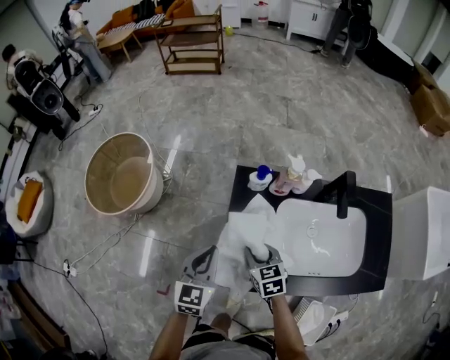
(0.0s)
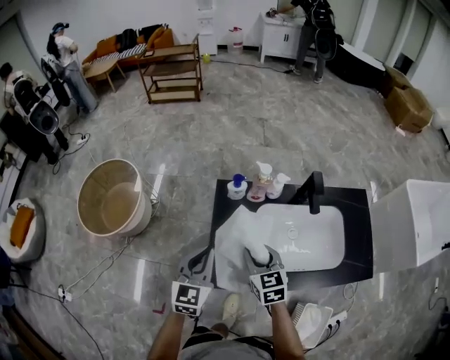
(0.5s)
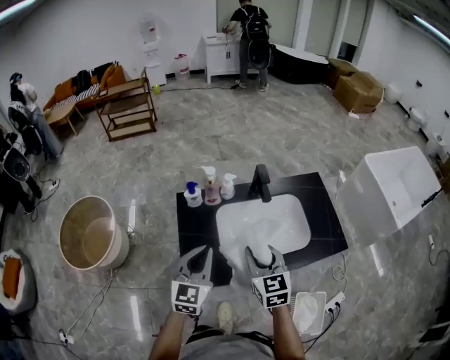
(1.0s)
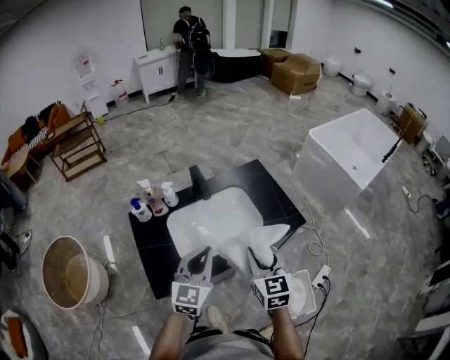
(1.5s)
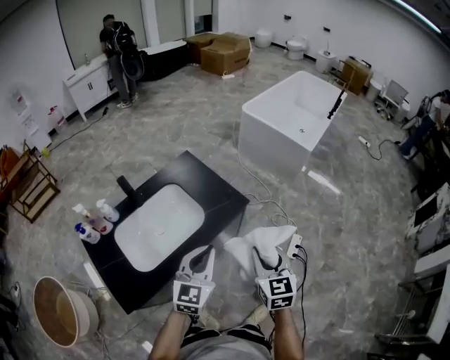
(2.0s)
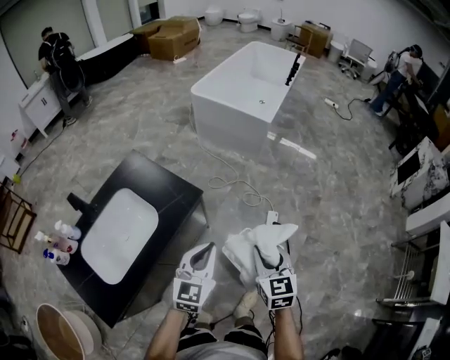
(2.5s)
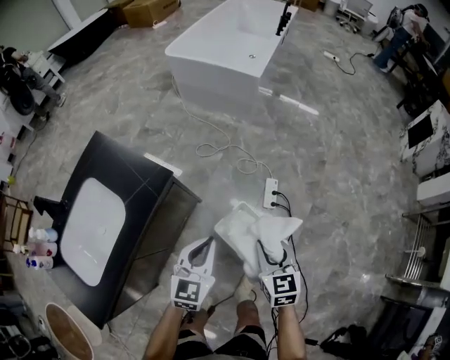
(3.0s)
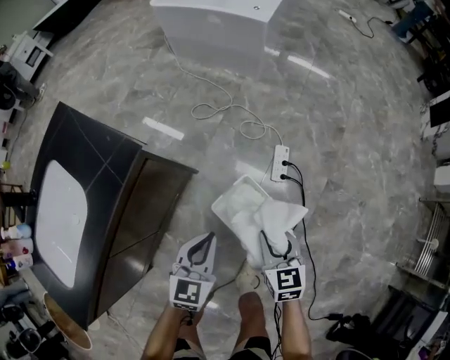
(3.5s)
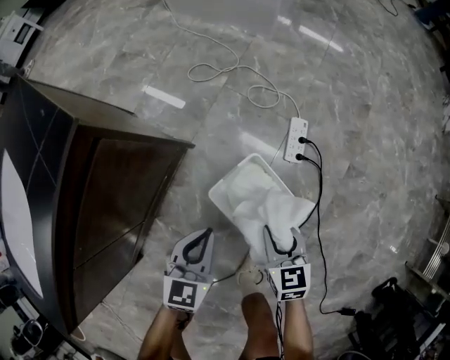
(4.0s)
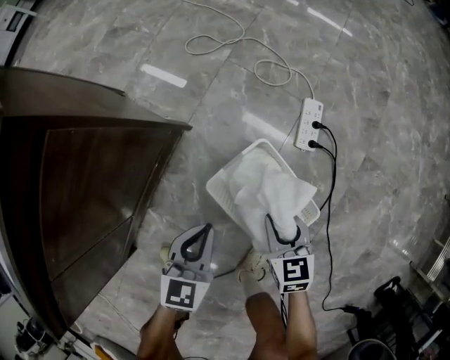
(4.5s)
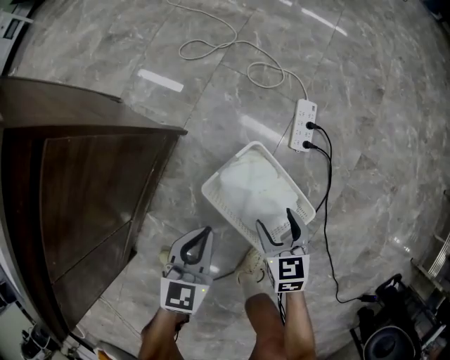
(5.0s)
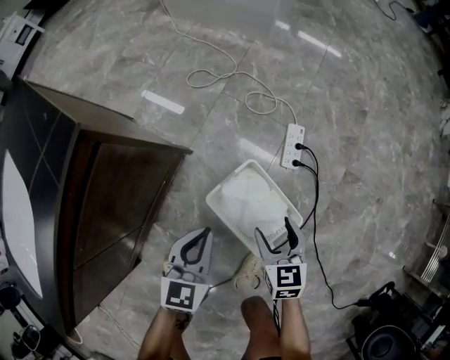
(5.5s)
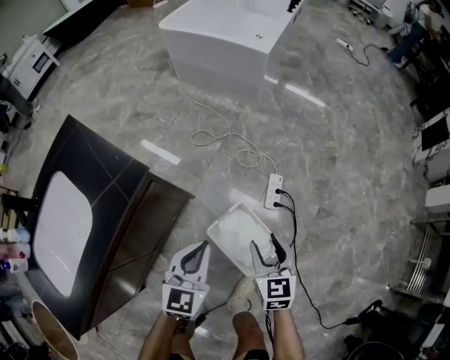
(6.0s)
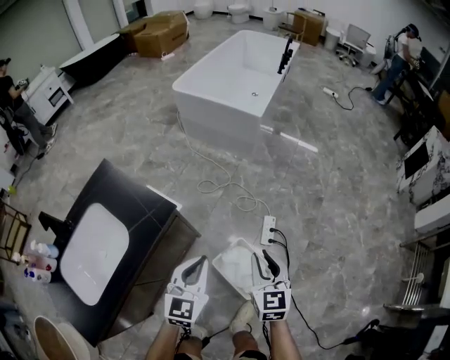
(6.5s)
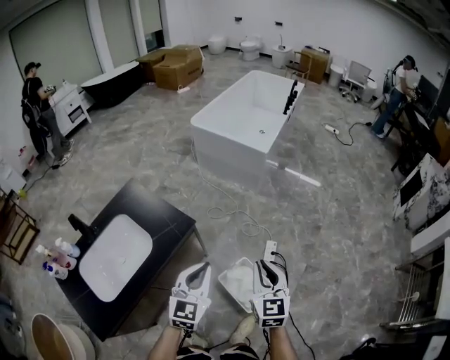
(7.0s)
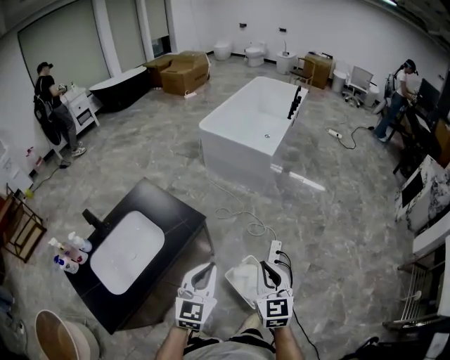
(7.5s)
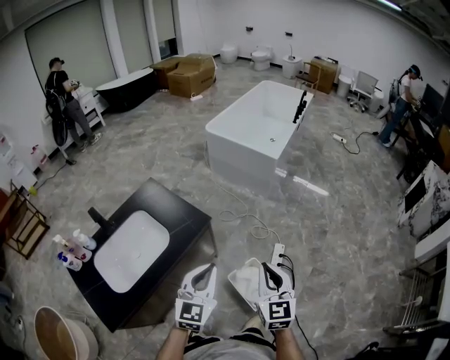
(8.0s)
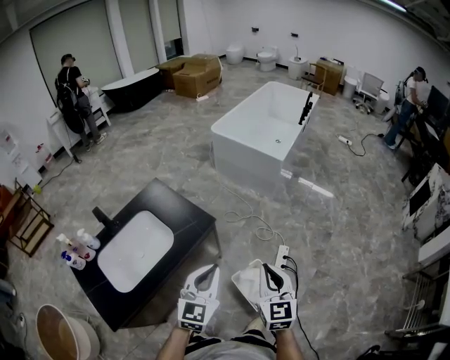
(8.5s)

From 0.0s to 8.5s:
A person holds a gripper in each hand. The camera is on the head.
From 0.0s to 2.0s: The two grippers travel together, roughly 60 cm. The right gripper turns by some 70 degrees. The left gripper changes its angle by some 60 degrees.
From 2.0s to 4.0s: Both grippers travel together downward and to the right, approximately 60 cm. The left gripper rotates approximately 30 degrees. Meanwhile the right gripper rotates some 30 degrees.
From 4.0s to 6.5s: The two grippers go some 40 cm upward. The left gripper swivels about 20 degrees. The right gripper rotates some 20 degrees, and opens, then closes again.
From 6.5s to 8.5s: The right gripper heads upward, backward and to the left, covering some 25 cm, while the left gripper shifts approximately 20 cm upward and backward.

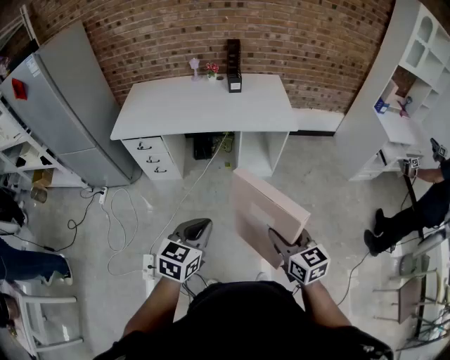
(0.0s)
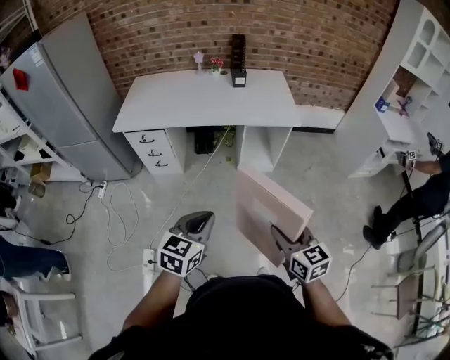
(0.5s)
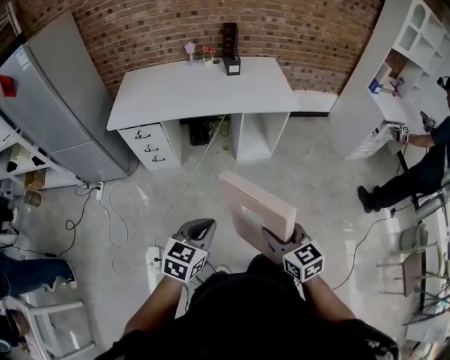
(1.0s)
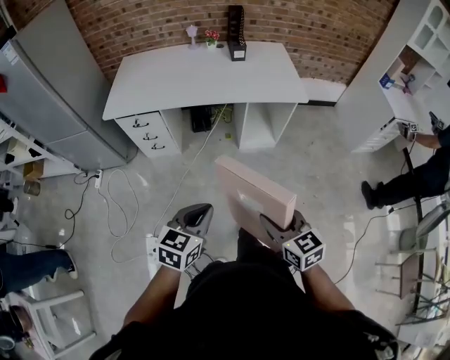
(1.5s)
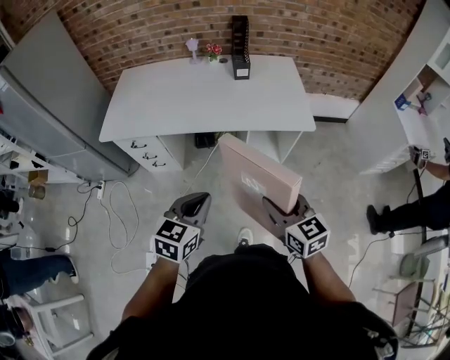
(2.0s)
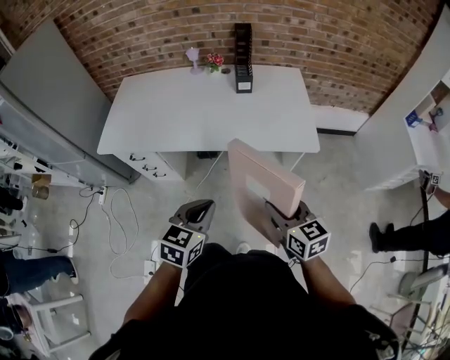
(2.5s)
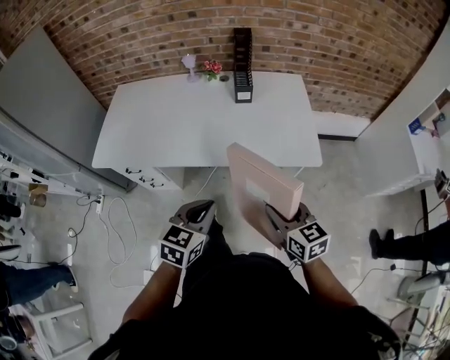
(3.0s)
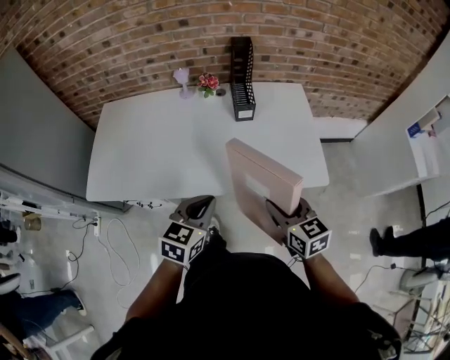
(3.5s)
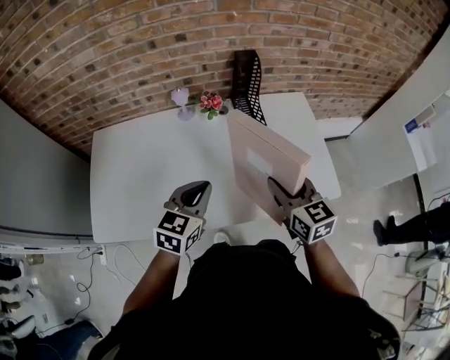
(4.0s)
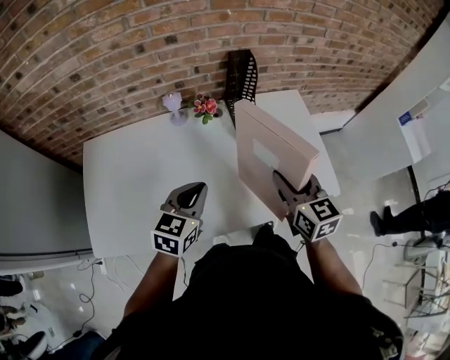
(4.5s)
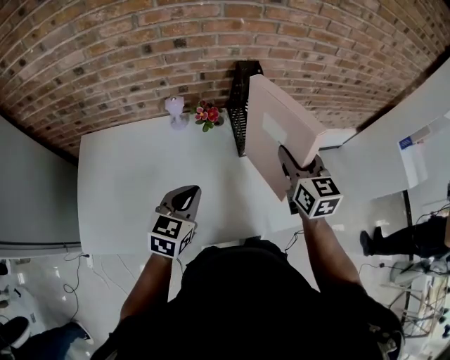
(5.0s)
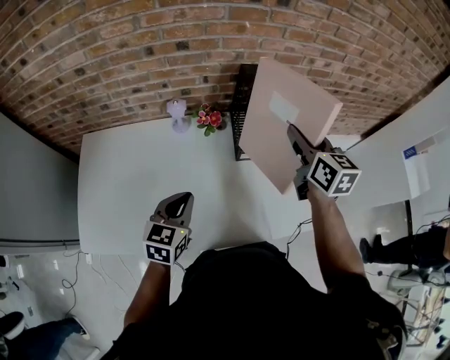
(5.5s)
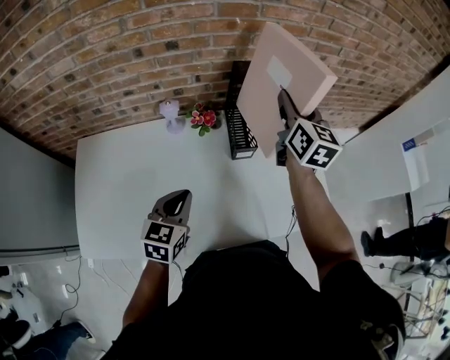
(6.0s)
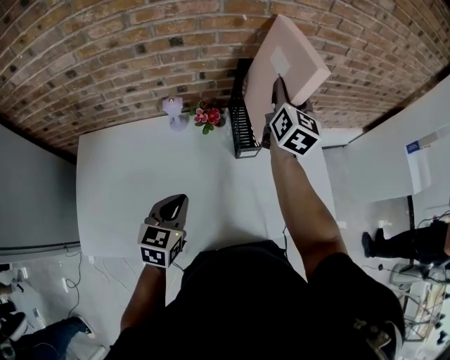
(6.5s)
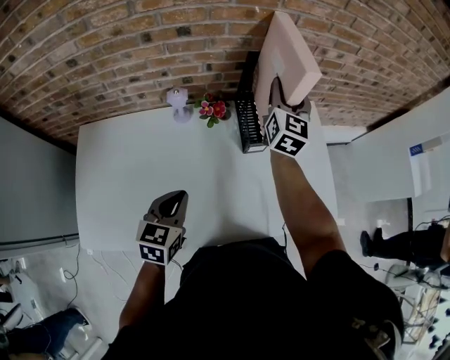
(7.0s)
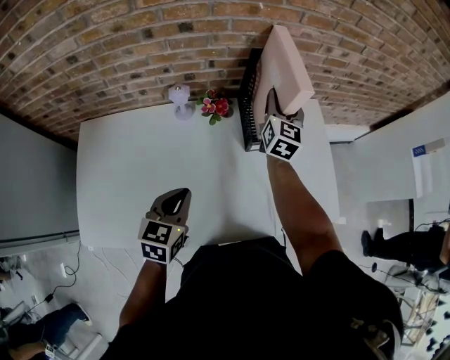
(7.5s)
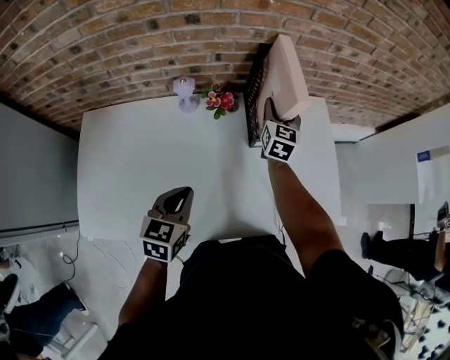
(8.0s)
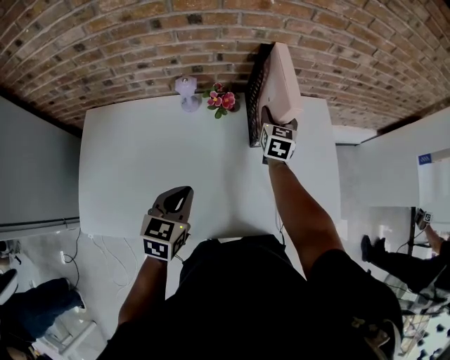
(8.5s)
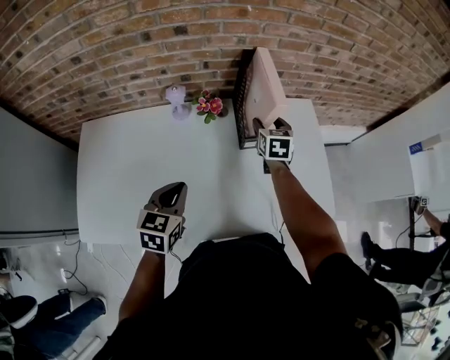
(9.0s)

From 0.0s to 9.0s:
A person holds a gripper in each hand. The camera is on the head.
From 0.0s to 2.0s: The two grippers go some 20 cm forward.
From 2.0s to 4.5s: The two grippers travel together, forward, about 50 cm. The right gripper rotates approximately 20 degrees.
From 4.5s to 7.0s: The right gripper shifts approximately 30 cm forward, and swivels approximately 30 degrees. The left gripper goes roughly 5 cm to the left.
From 7.0s to 9.0s: The right gripper moves downward, about 20 cm, points its fingers about 30 degrees further downward, and opens its fingers.

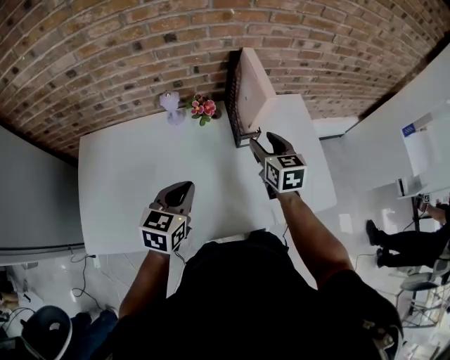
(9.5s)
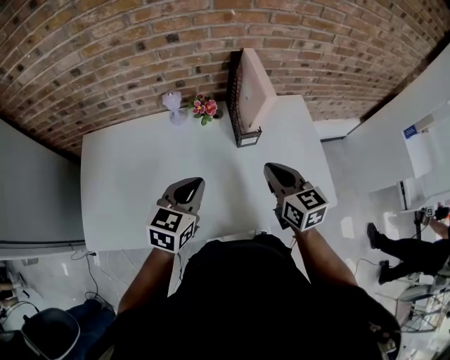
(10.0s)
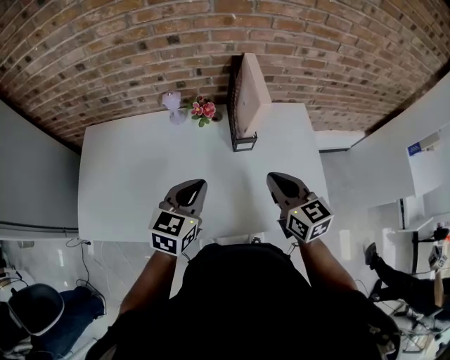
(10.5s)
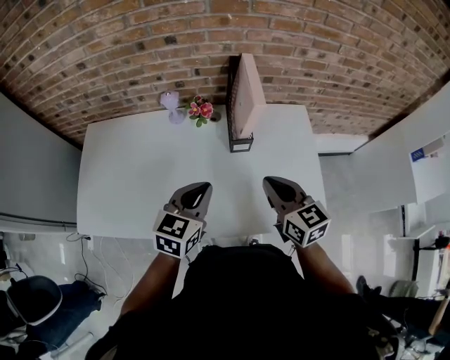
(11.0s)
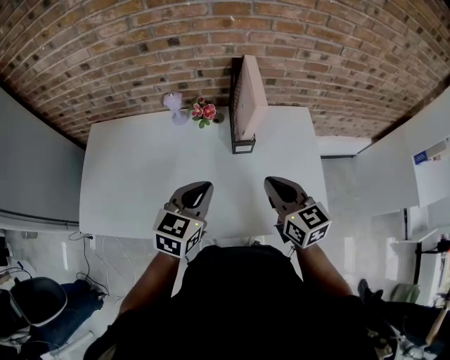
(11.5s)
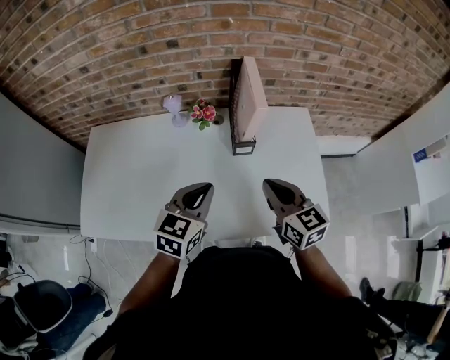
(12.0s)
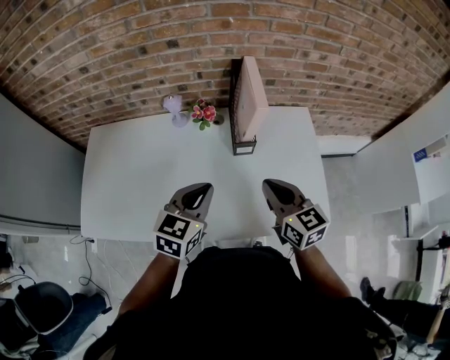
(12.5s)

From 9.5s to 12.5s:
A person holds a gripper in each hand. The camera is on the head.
From 9.5s to 11.0s: The left gripper is displaced to the right by roughly 10 cm. Meanwhile the right gripper heads backward and to the right, covering approximately 15 cm, changes its angle by roughly 20 degrees, and closes its fingers.
From 11.0s to 12.5s: Both grippers stay put.

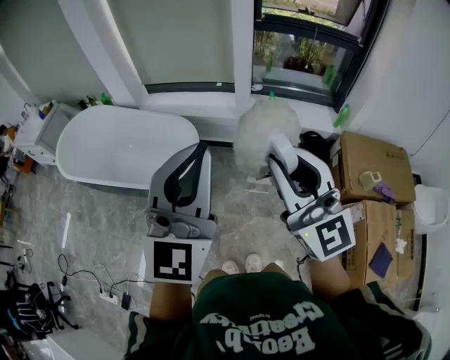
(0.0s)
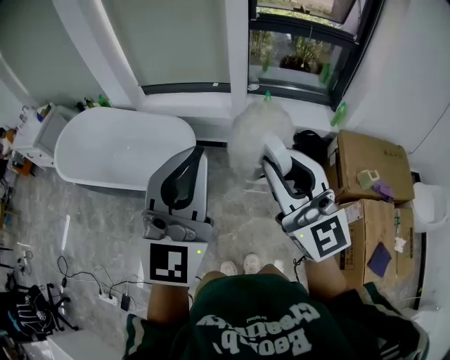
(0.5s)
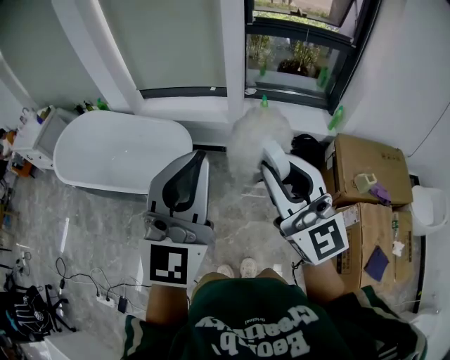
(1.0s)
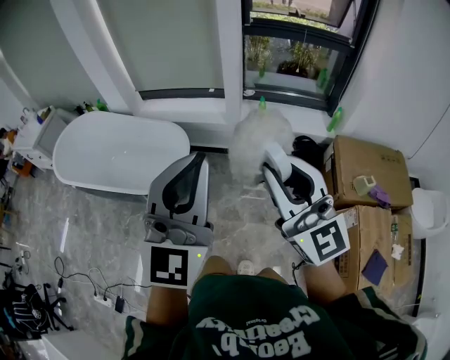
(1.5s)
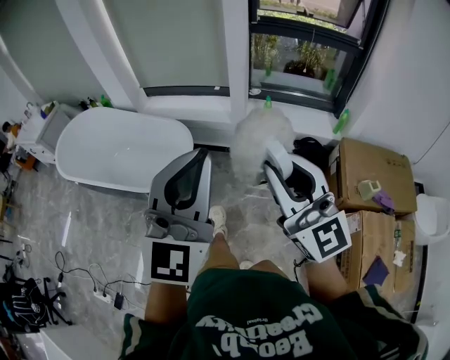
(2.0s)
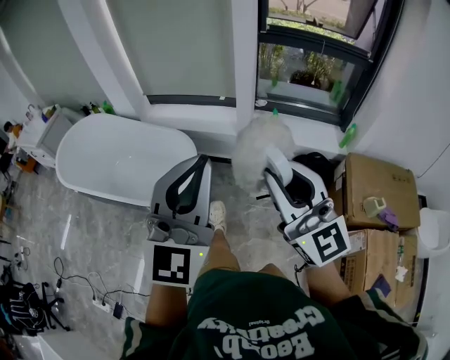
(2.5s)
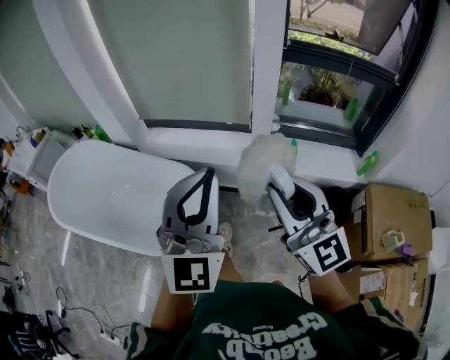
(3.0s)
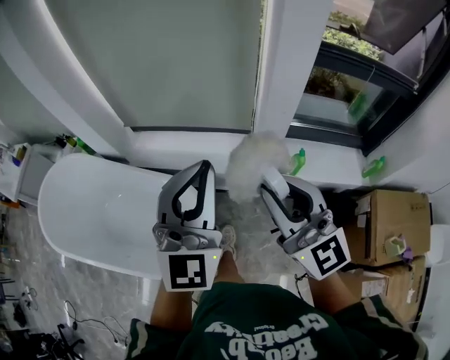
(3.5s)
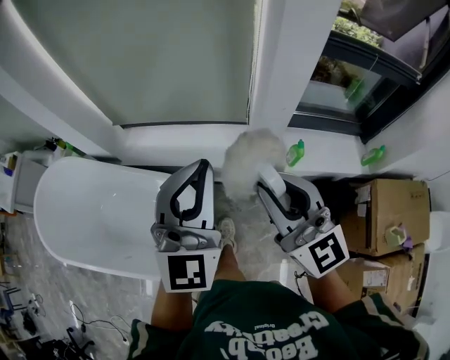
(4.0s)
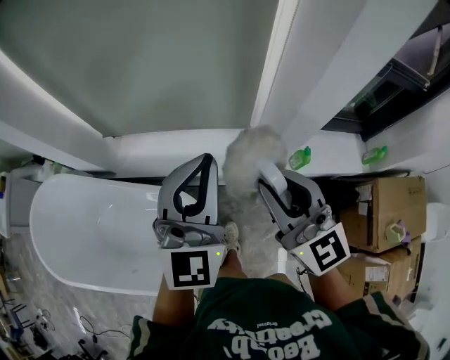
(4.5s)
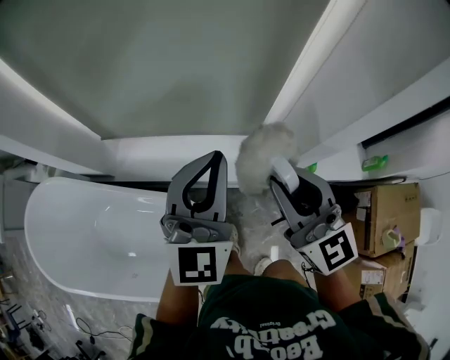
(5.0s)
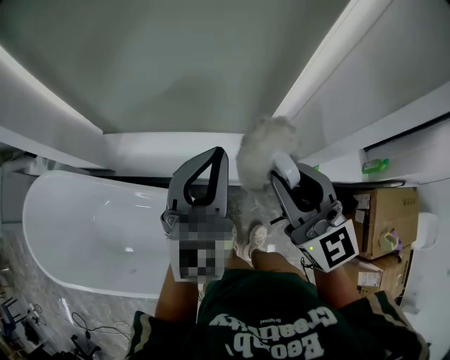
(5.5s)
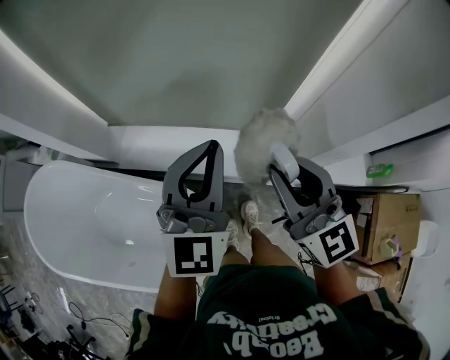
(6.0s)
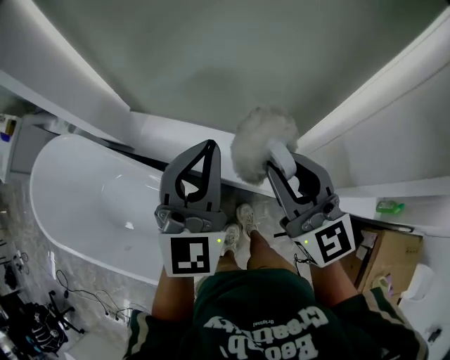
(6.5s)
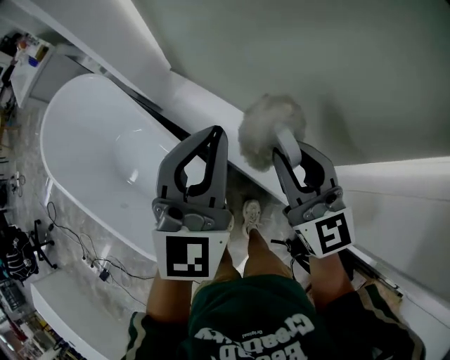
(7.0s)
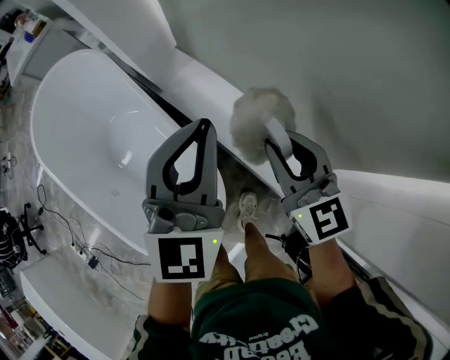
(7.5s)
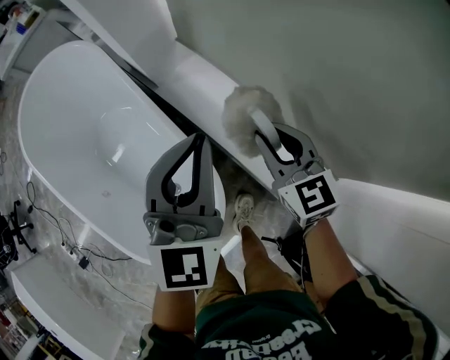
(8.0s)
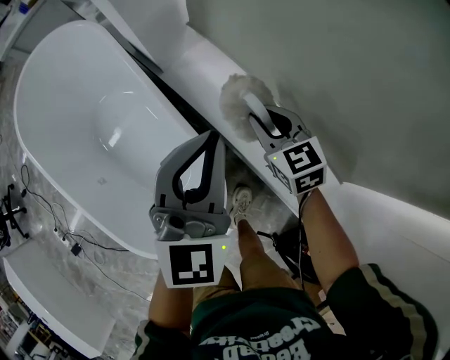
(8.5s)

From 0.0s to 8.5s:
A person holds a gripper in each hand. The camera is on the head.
From 0.0s to 2.0s: Both grippers travel together to the right, roughly 5 cm.
From 2.0s to 4.0s: The two grippers travel together, forward, some 50 cm.
From 4.0s to 6.5s: The grippers both shift forward by approximately 20 cm.
From 6.5s to 8.5s: The left gripper moves downward, roughly 15 cm, and changes its angle by roughly 30 degrees. The right gripper goes about 30 cm downward, and tips its fingers downward by approximately 30 degrees.
